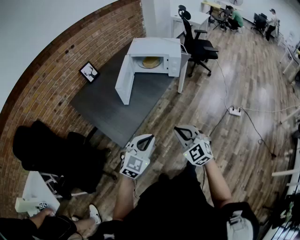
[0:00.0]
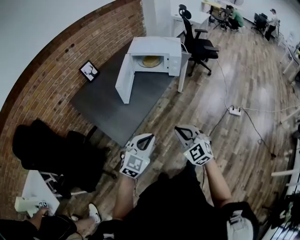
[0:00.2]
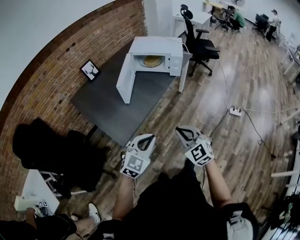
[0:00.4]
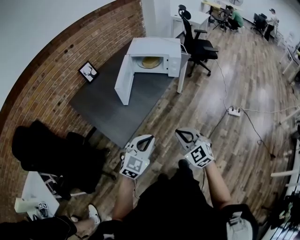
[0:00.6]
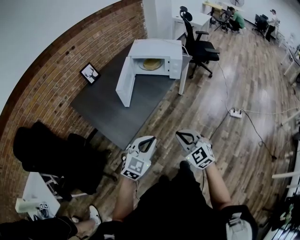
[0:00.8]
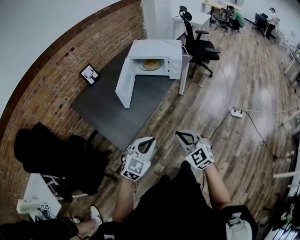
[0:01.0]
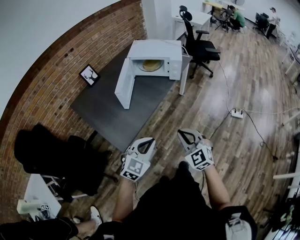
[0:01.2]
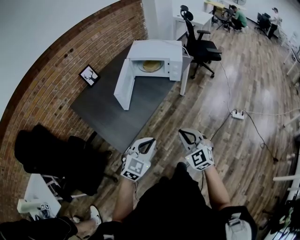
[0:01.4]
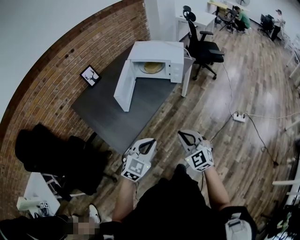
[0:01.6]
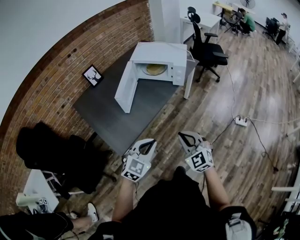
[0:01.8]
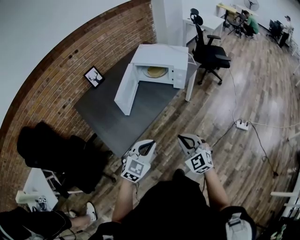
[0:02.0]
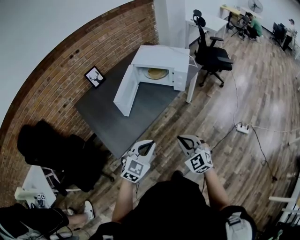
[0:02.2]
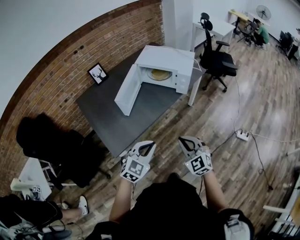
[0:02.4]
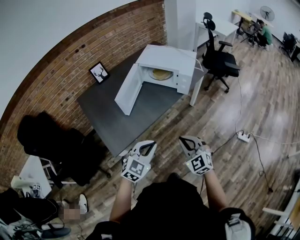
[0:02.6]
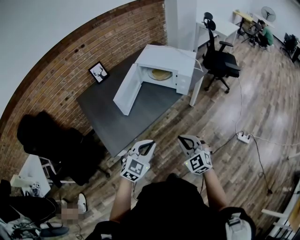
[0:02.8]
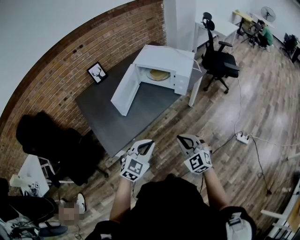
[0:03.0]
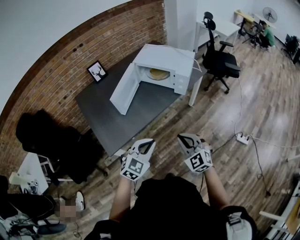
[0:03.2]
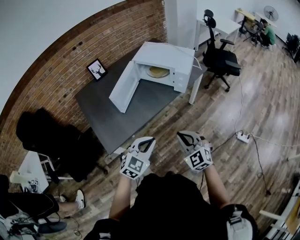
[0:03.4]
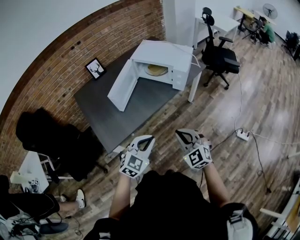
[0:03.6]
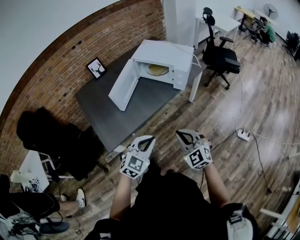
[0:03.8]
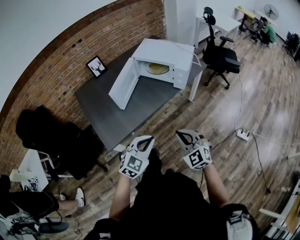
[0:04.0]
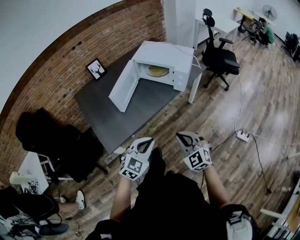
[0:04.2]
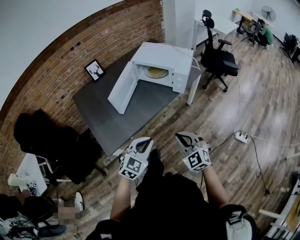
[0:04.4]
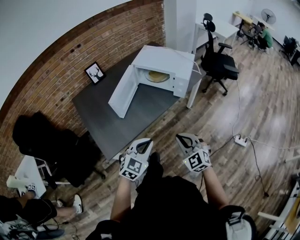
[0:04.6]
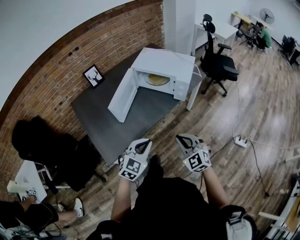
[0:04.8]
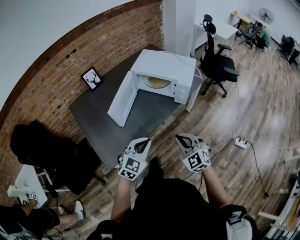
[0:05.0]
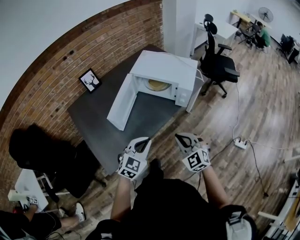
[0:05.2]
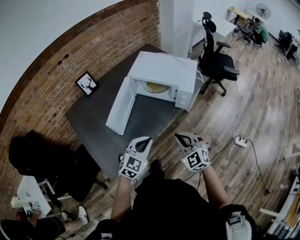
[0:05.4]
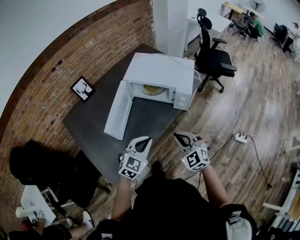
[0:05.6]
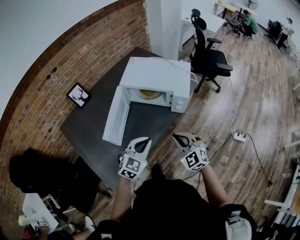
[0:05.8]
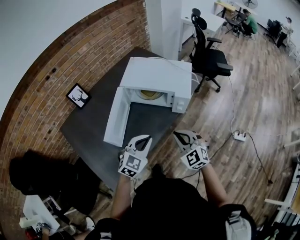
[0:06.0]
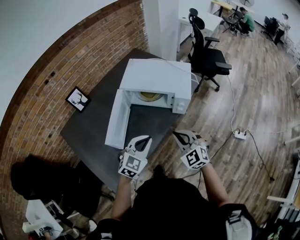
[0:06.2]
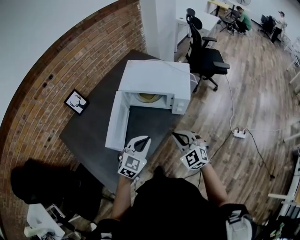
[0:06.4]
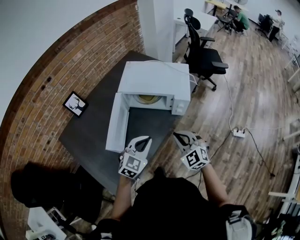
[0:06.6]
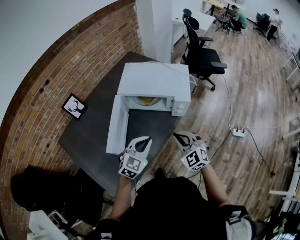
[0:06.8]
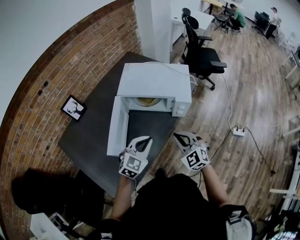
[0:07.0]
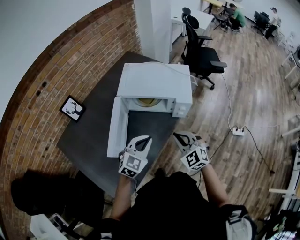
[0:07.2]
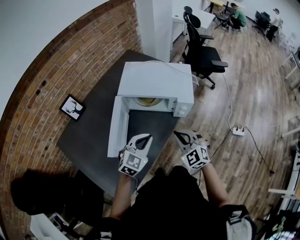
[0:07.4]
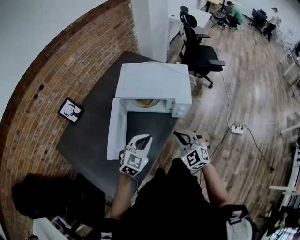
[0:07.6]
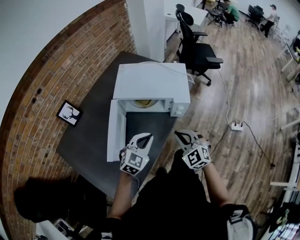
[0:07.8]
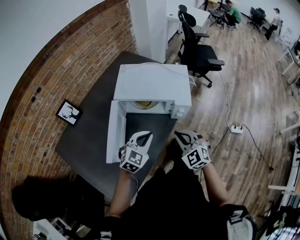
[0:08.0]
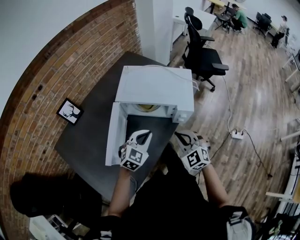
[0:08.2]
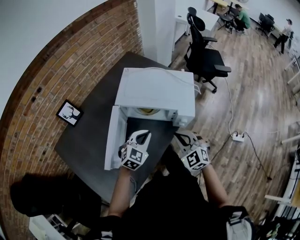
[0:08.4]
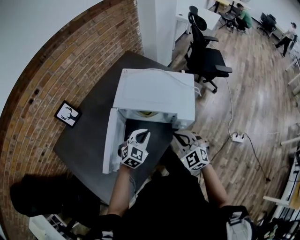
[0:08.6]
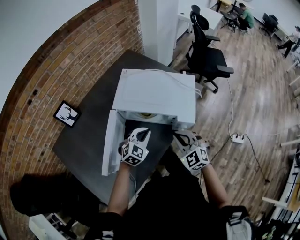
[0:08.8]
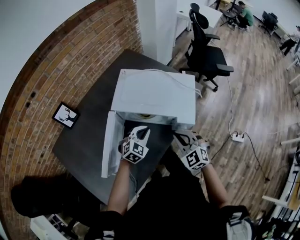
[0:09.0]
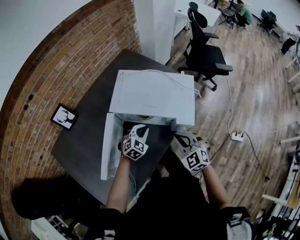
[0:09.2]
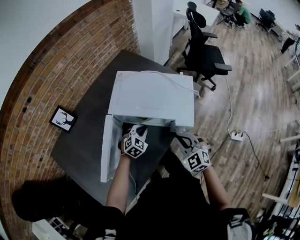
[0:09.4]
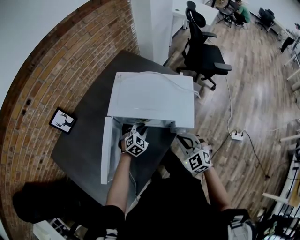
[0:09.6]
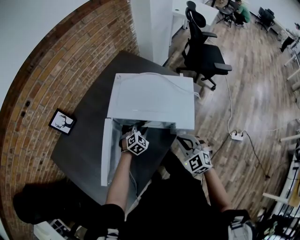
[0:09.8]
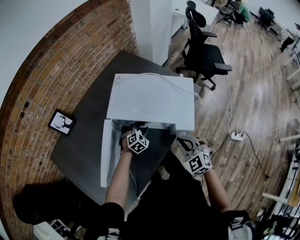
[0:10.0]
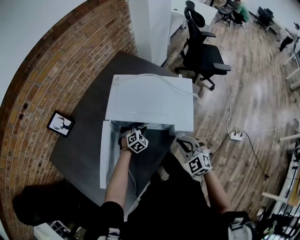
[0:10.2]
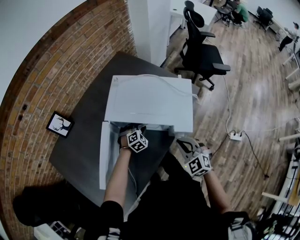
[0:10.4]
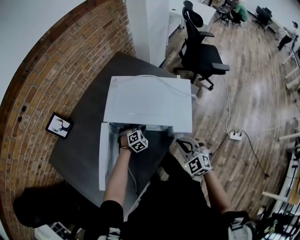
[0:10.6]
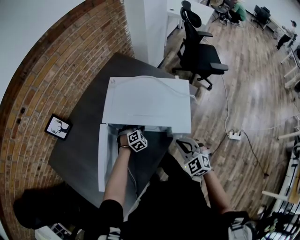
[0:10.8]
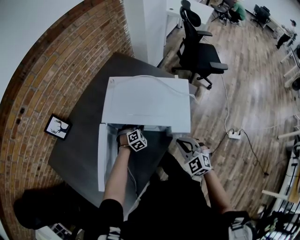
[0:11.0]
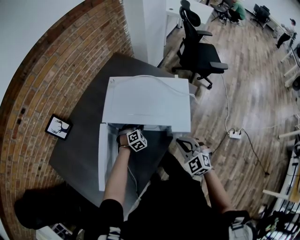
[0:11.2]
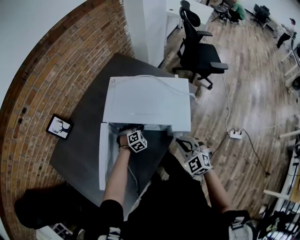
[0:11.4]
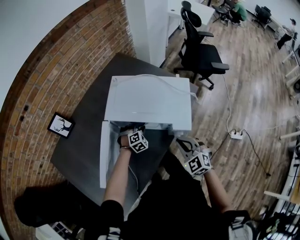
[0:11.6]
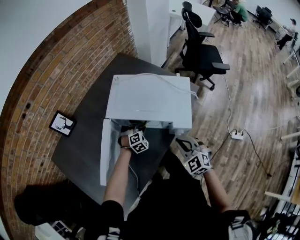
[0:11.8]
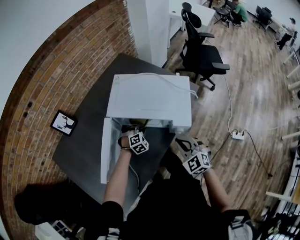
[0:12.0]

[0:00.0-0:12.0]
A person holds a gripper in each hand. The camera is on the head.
0:00.0 to 0:01.6: Both grippers travel together forward, about 5 cm.
0:01.6 to 0:03.0: The two grippers go approximately 10 cm forward and to the right.
0:03.0 to 0:04.4: The grippers move only a little.
0:04.4 to 0:06.0: The two grippers go roughly 25 cm forward.
0:06.0 to 0:07.6: The two grippers go approximately 5 cm forward.
0:07.6 to 0:09.0: The left gripper heads forward and downward, covering roughly 20 cm, while the right gripper heads forward, covering roughly 10 cm.
0:09.0 to 0:10.4: The left gripper heads downward and forward, covering approximately 15 cm, and rotates approximately 20 degrees.
0:10.4 to 0:12.0: The grippers stay close to where they were, moving slightly.

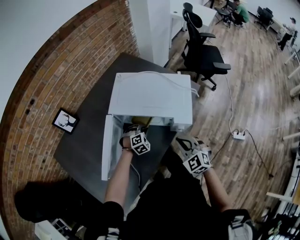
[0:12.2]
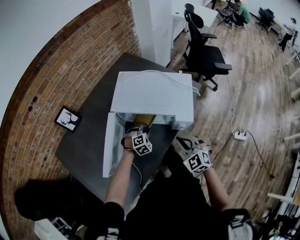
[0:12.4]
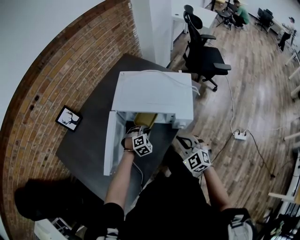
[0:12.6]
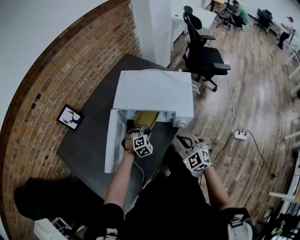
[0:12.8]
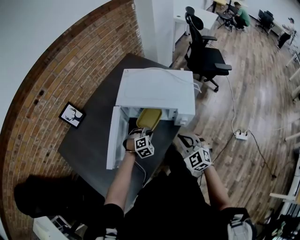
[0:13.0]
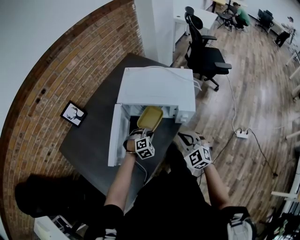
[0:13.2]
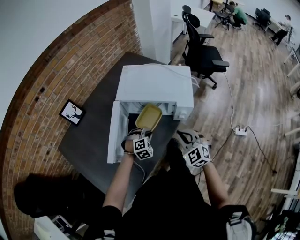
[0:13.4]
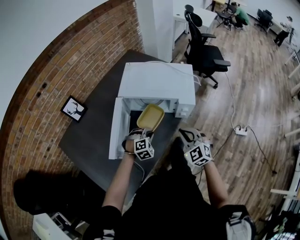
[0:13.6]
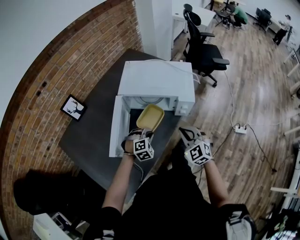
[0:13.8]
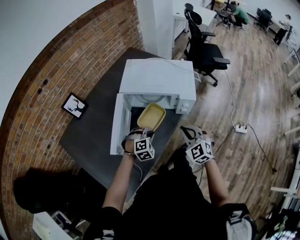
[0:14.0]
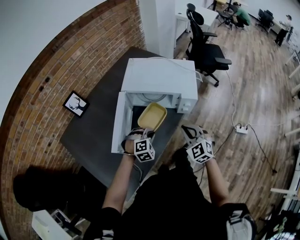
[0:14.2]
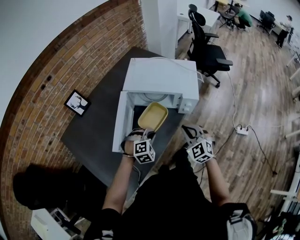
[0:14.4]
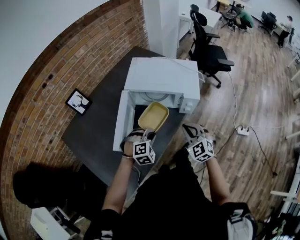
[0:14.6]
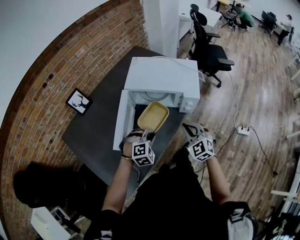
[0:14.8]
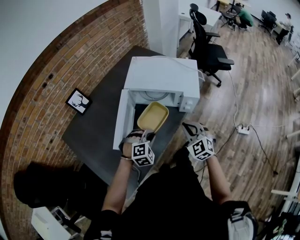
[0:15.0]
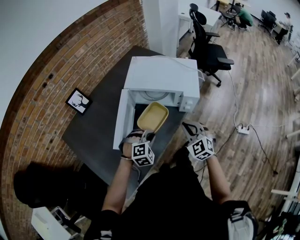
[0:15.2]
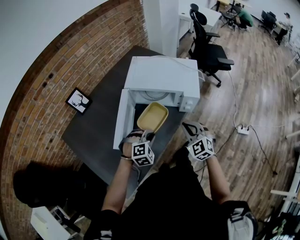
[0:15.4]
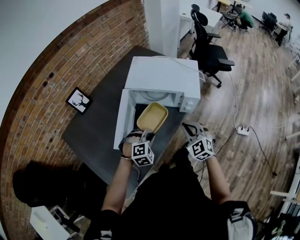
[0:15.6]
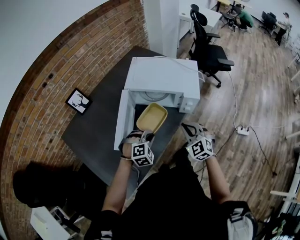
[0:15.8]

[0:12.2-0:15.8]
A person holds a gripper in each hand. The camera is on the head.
0:12.2 to 0:14.0: The right gripper moves backward, about 10 cm. The left gripper is displaced backward by approximately 20 cm.
0:14.0 to 0:15.8: The left gripper ends up approximately 5 cm from where it was.

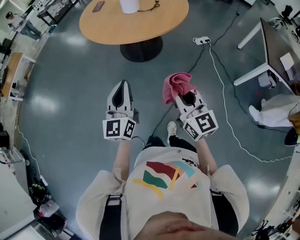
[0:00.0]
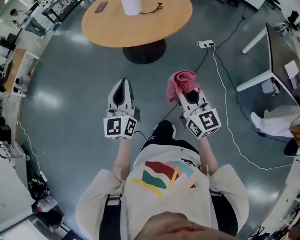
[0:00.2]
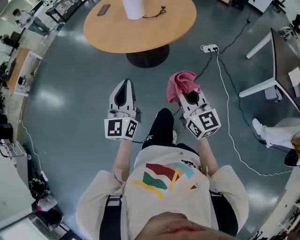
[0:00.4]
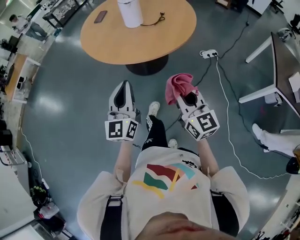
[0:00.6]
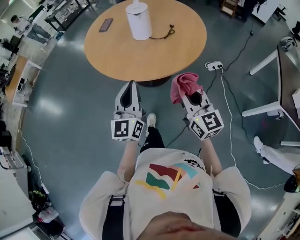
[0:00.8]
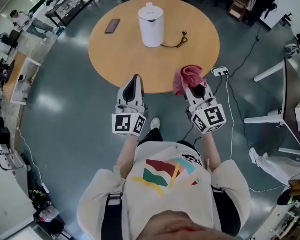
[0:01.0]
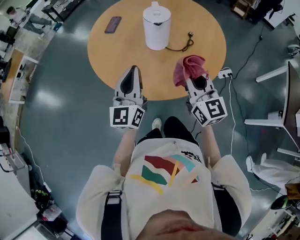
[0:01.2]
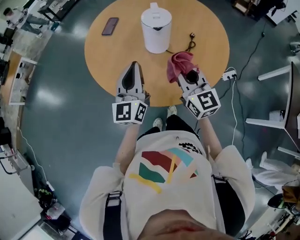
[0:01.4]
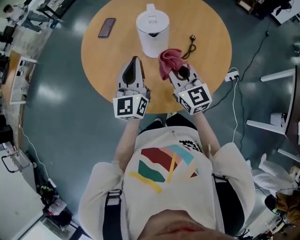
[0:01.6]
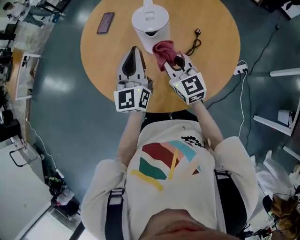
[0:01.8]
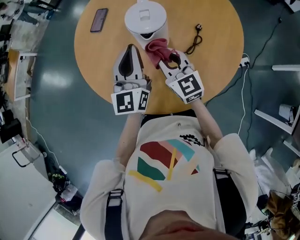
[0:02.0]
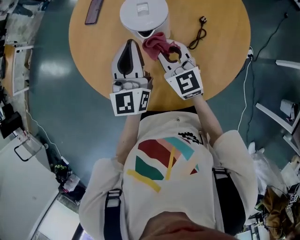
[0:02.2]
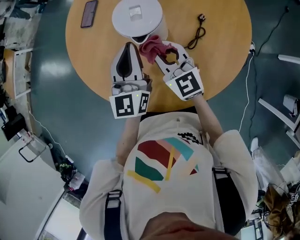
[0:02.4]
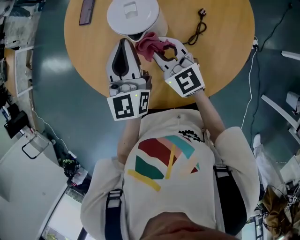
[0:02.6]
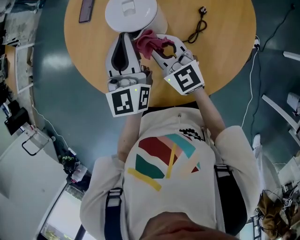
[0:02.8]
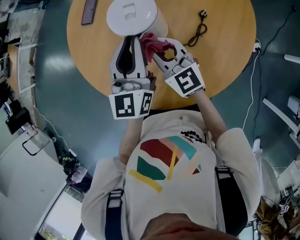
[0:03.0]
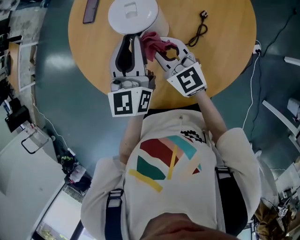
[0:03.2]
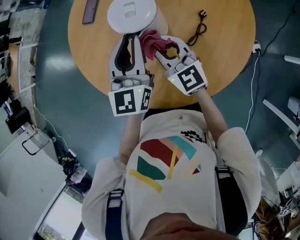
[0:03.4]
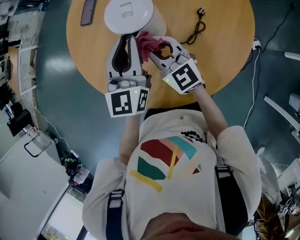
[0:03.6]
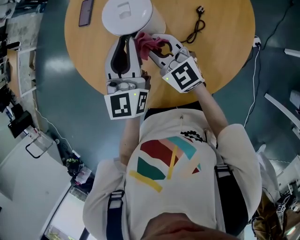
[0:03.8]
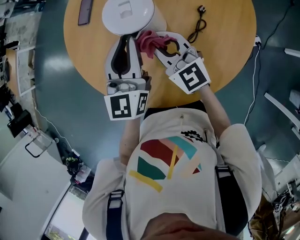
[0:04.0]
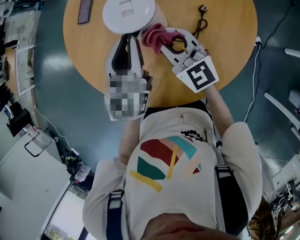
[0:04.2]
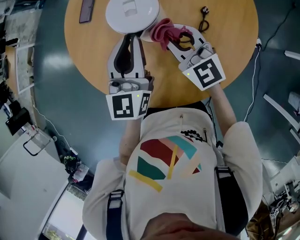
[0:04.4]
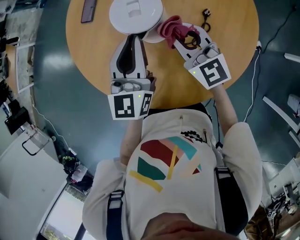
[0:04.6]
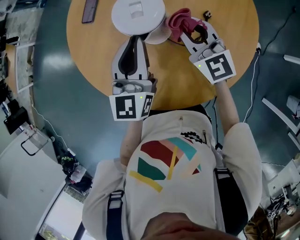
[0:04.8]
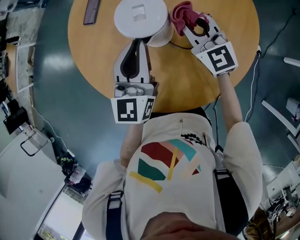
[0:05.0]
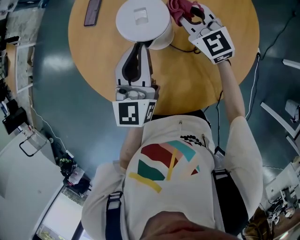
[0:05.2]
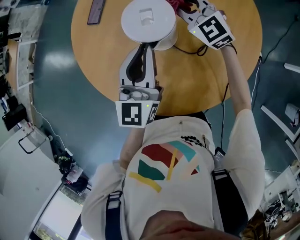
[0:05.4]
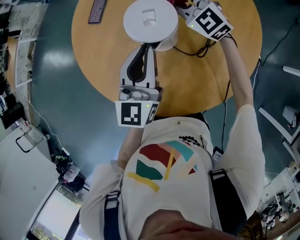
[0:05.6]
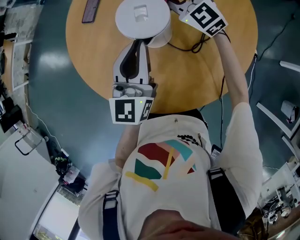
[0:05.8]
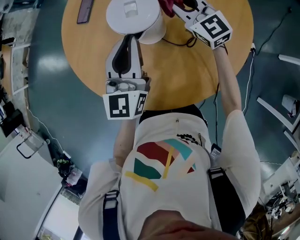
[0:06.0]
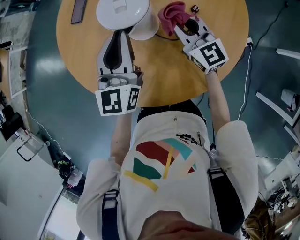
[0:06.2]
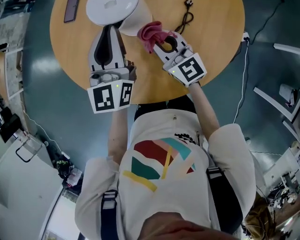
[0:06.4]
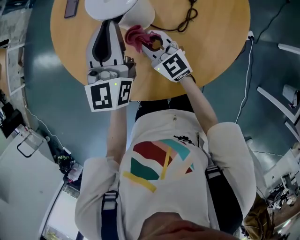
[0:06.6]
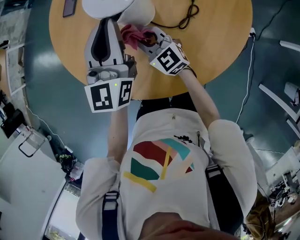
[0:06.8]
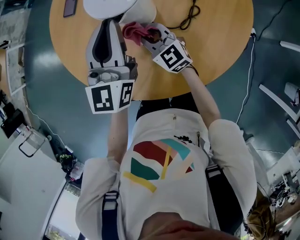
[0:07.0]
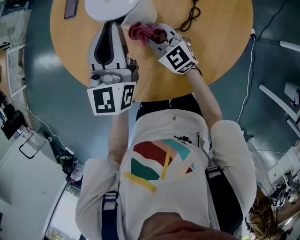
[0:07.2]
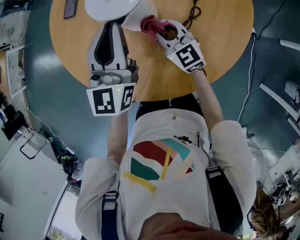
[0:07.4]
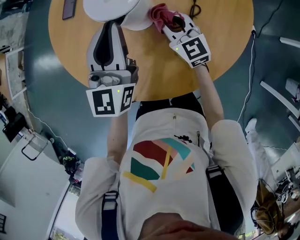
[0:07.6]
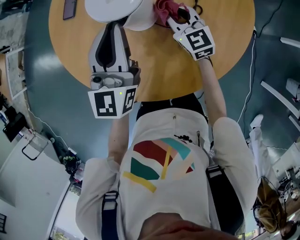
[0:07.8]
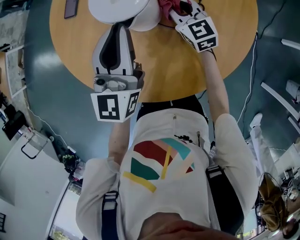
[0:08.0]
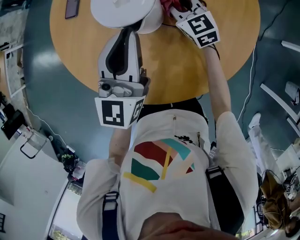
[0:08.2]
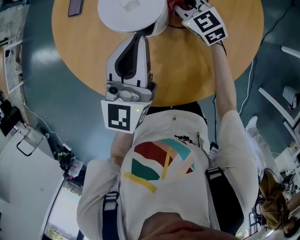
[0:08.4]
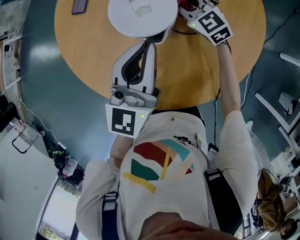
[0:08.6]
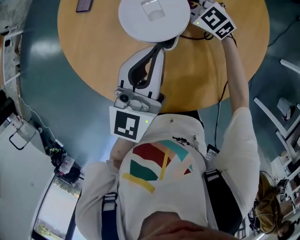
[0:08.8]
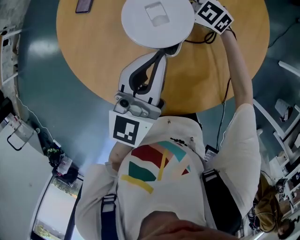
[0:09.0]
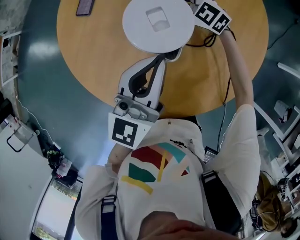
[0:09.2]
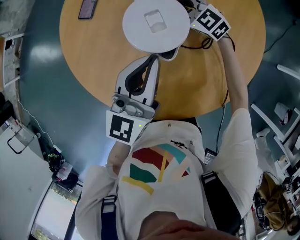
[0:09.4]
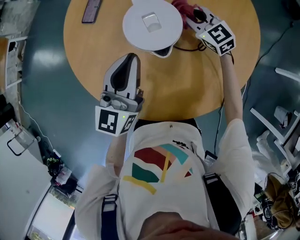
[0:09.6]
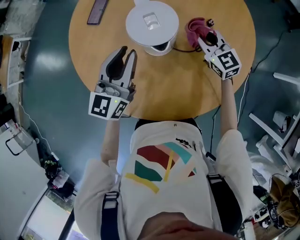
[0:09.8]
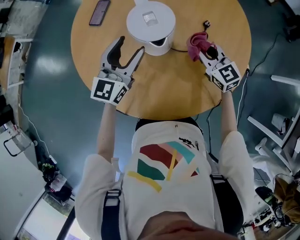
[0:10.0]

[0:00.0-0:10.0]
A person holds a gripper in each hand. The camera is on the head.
0:00.0 to 0:01.4: The two grippers travel together, forward, some 60 cm.
0:01.4 to 0:02.8: The right gripper is displaced forward and downward by about 25 cm. Meanwhile the left gripper goes roughly 20 cm forward and to the right.
0:02.8 to 0:04.2: The grippers move only a little.
0:04.2 to 0:05.8: The right gripper travels forward by about 15 cm.
0:05.8 to 0:07.2: The right gripper goes about 15 cm downward and backward, while the left gripper travels forward and to the right by roughly 10 cm.
0:07.2 to 0:08.6: The left gripper shifts some 20 cm backward. Meanwhile the right gripper goes some 5 cm backward.
0:08.6 to 0:10.0: The left gripper travels forward by some 15 cm, and opens. The right gripper shifts roughly 10 cm to the right.
